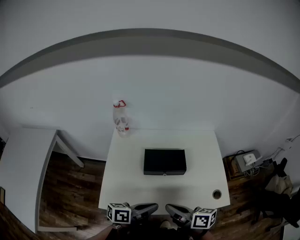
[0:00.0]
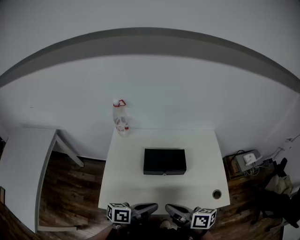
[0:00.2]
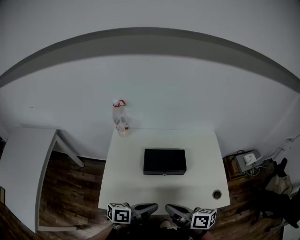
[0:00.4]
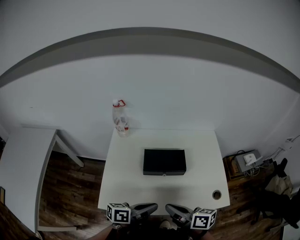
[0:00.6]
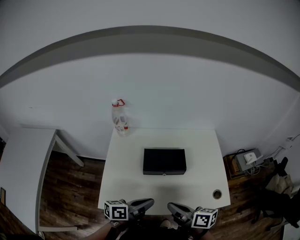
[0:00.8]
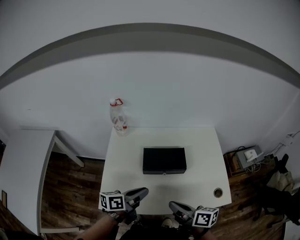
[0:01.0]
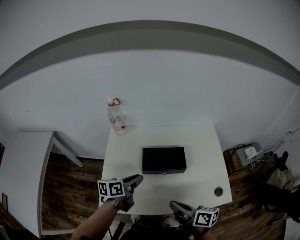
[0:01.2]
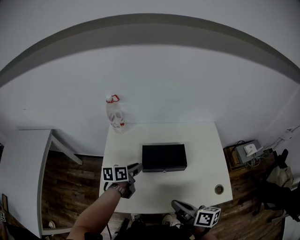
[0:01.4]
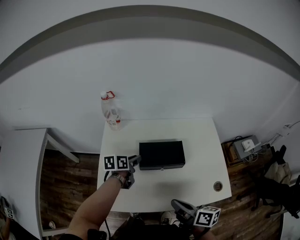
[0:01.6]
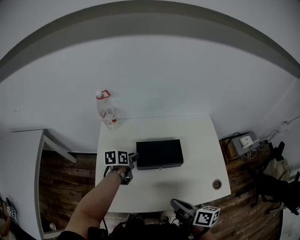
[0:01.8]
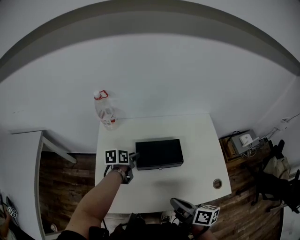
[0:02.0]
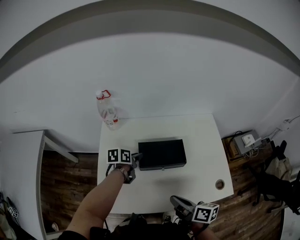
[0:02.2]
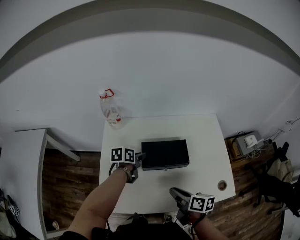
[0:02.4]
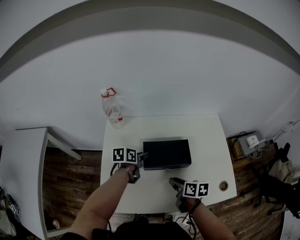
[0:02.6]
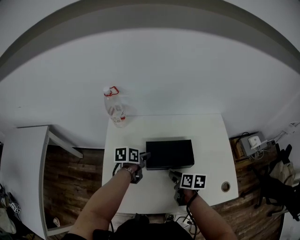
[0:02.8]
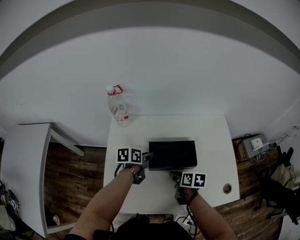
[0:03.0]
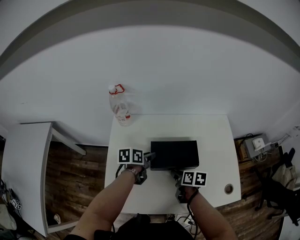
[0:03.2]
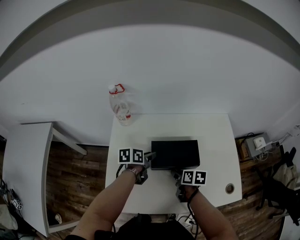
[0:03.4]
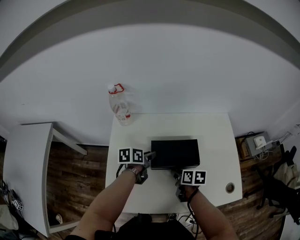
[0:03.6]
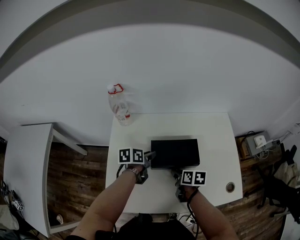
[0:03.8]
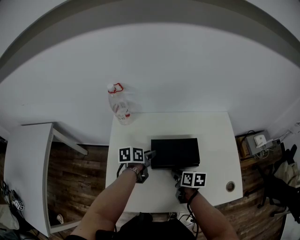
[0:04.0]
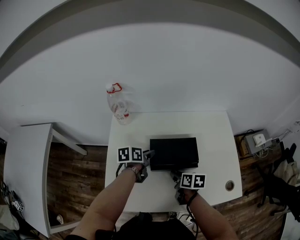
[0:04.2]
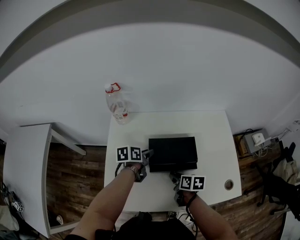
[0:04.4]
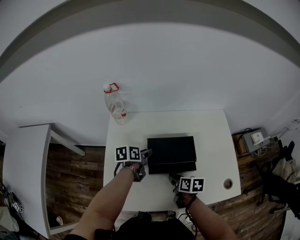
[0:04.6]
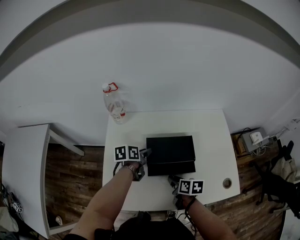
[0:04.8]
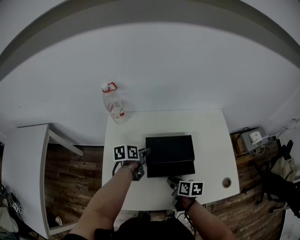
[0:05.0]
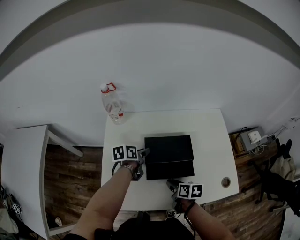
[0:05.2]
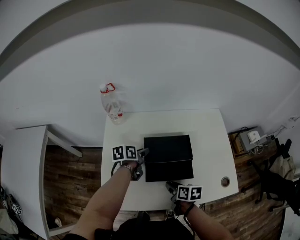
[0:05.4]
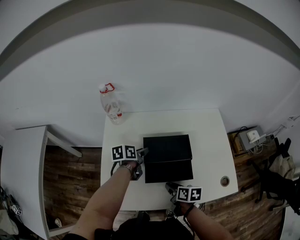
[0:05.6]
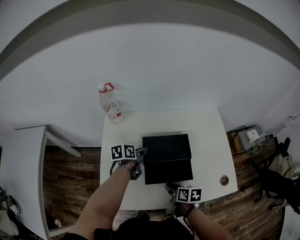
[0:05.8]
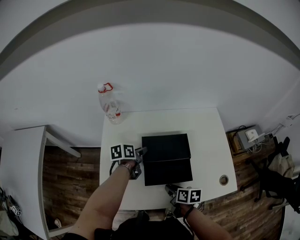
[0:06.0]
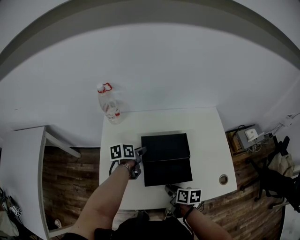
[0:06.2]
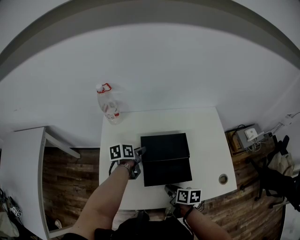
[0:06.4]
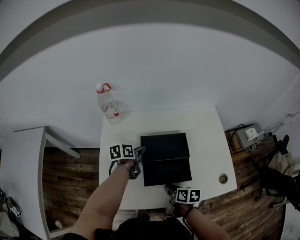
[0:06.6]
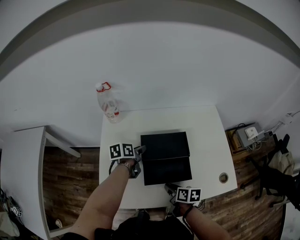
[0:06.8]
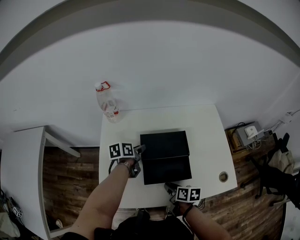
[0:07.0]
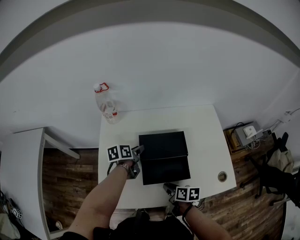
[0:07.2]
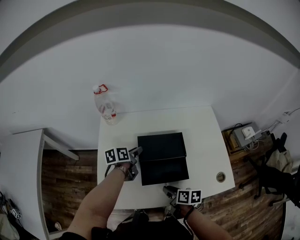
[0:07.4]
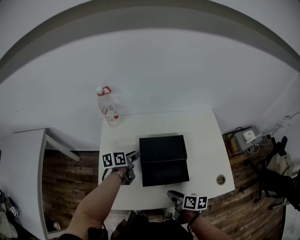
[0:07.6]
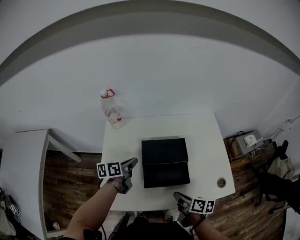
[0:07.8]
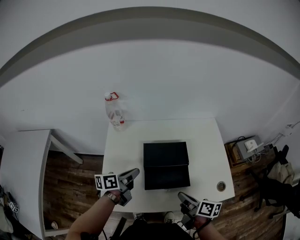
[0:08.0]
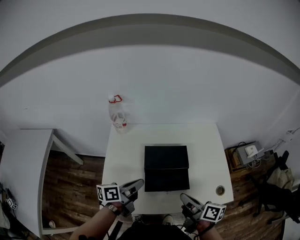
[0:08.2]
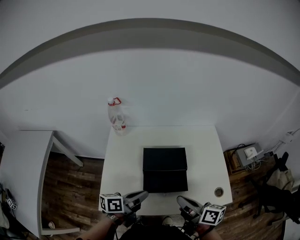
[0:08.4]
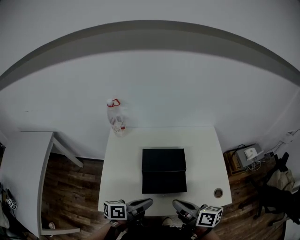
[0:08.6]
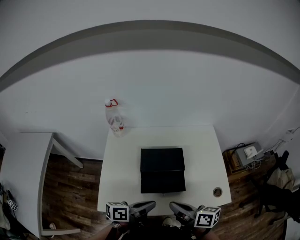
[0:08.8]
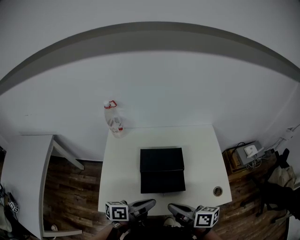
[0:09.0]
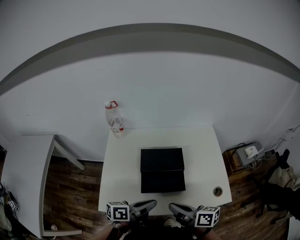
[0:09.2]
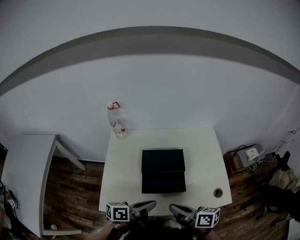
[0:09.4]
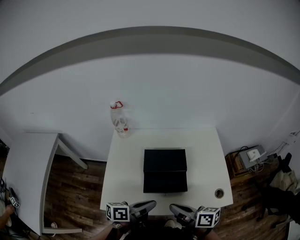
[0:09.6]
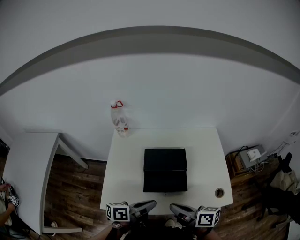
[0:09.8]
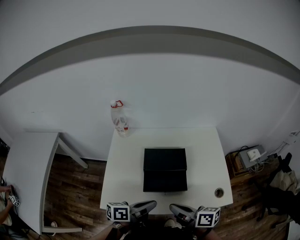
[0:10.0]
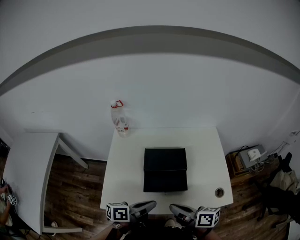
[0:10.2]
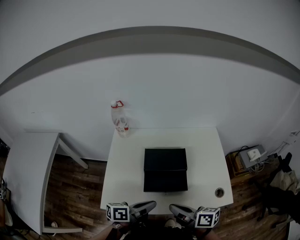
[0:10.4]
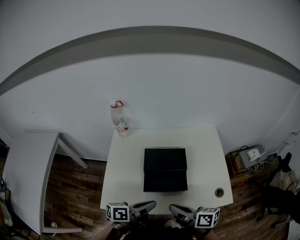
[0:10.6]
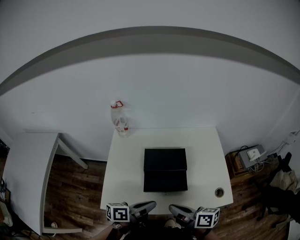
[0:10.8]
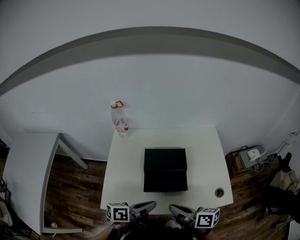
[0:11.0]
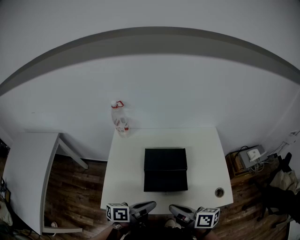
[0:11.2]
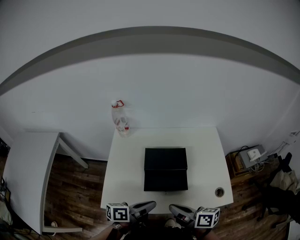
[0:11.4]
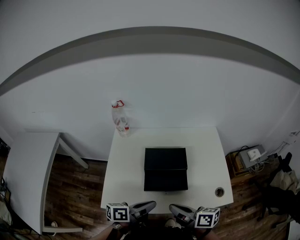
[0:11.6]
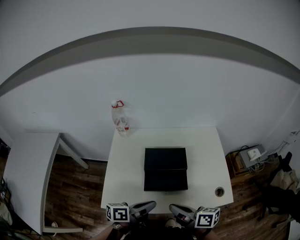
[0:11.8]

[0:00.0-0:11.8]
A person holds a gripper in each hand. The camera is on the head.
0:00.0 to 0:01.4: The left gripper goes approximately 20 cm forward and to the left, swivels approximately 30 degrees, and opens up.
0:01.4 to 0:03.0: The right gripper goes some 20 cm forward and downward, tilts its fingers about 30 degrees downward, and opens up. Meanwhile the left gripper heads forward and downward, covering roughly 10 cm.
0:03.0 to 0:04.4: The grippers stay close to where they were, moving slightly.
0:04.4 to 0:06.0: The right gripper travels backward by approximately 10 cm.
0:06.0 to 0:07.4: The grippers stay close to where they were, moving slightly.
0:07.4 to 0:08.8: The left gripper shifts about 25 cm backward and upward, swivels about 30 degrees, and closes its fingers; the right gripper heads upward, covering about 15 cm, changes its angle by about 30 degrees, and closes its fingers.
0:08.8 to 0:10.4: There are only small adjustments of the grippers.
0:10.4 to 0:11.8: The two grippers keep their place.

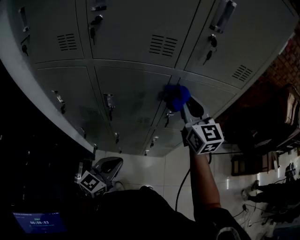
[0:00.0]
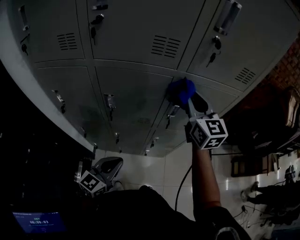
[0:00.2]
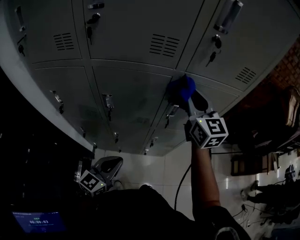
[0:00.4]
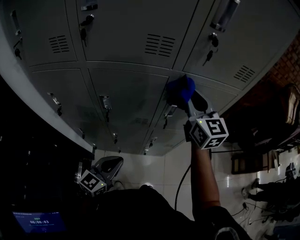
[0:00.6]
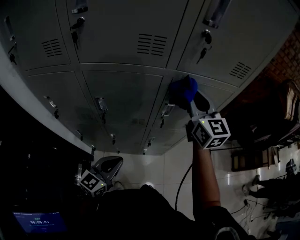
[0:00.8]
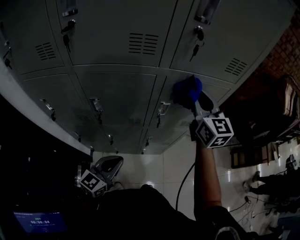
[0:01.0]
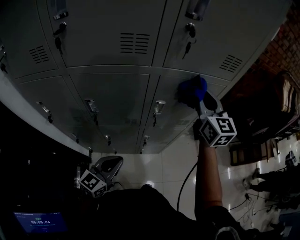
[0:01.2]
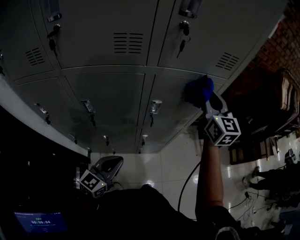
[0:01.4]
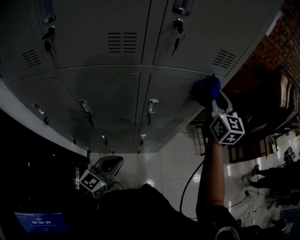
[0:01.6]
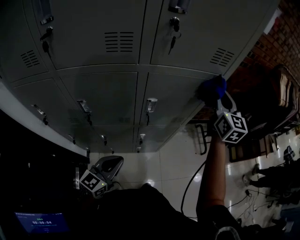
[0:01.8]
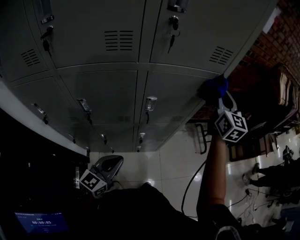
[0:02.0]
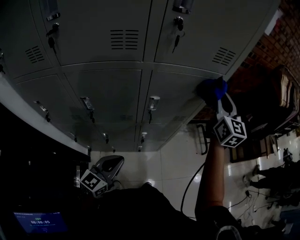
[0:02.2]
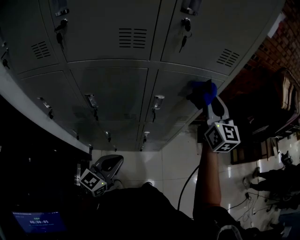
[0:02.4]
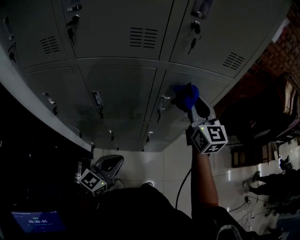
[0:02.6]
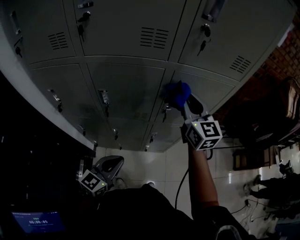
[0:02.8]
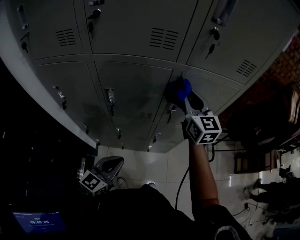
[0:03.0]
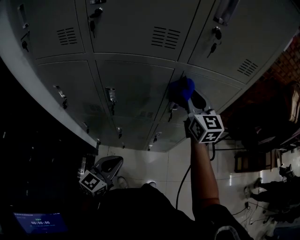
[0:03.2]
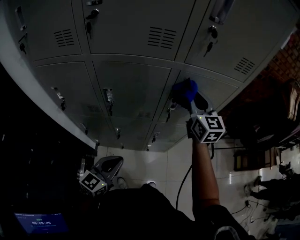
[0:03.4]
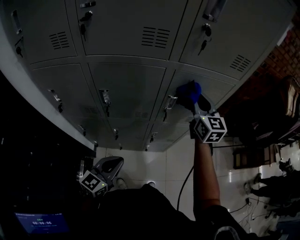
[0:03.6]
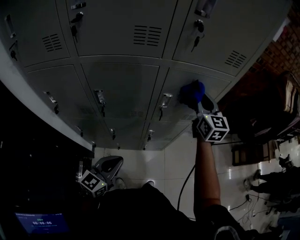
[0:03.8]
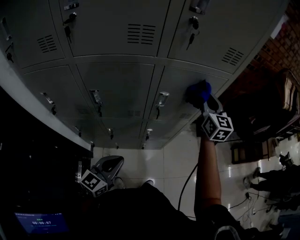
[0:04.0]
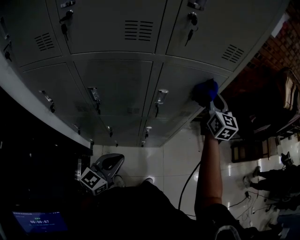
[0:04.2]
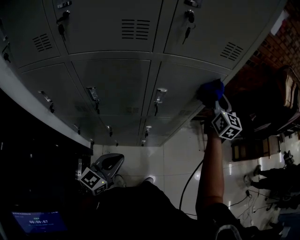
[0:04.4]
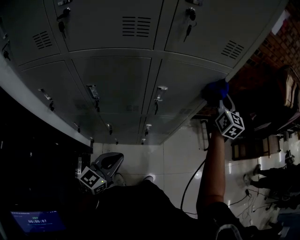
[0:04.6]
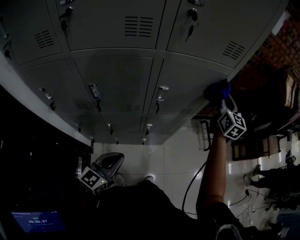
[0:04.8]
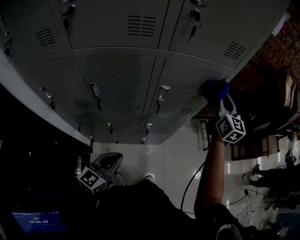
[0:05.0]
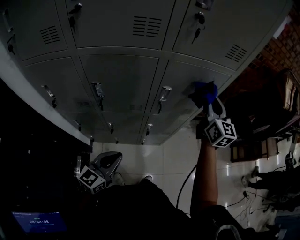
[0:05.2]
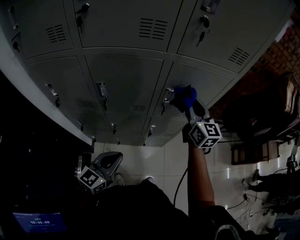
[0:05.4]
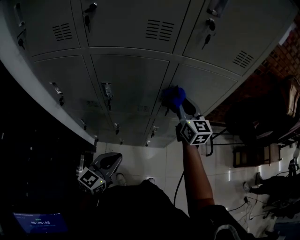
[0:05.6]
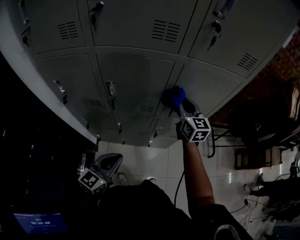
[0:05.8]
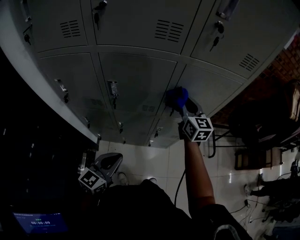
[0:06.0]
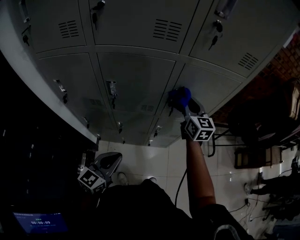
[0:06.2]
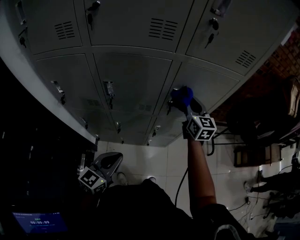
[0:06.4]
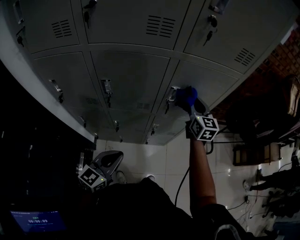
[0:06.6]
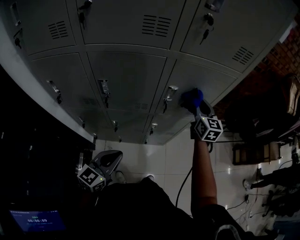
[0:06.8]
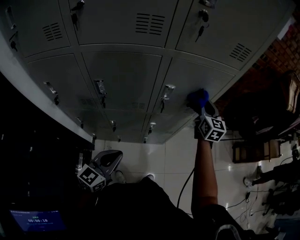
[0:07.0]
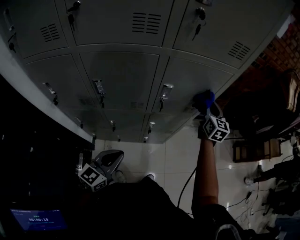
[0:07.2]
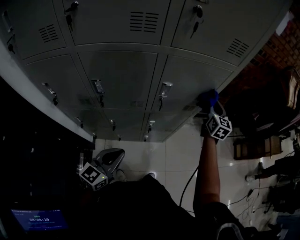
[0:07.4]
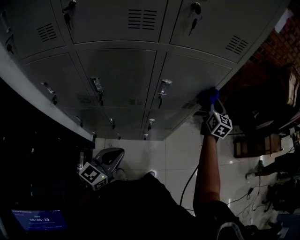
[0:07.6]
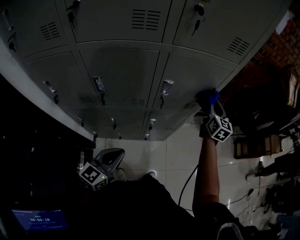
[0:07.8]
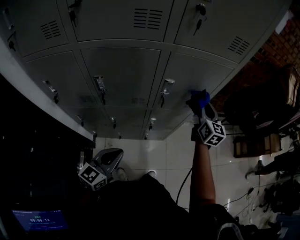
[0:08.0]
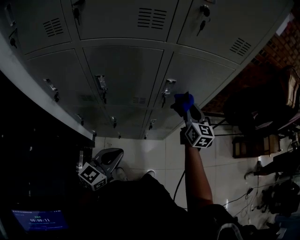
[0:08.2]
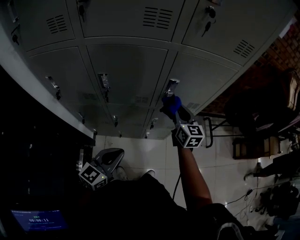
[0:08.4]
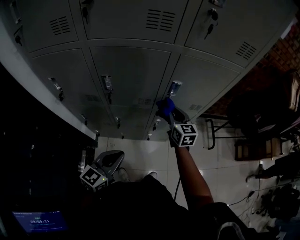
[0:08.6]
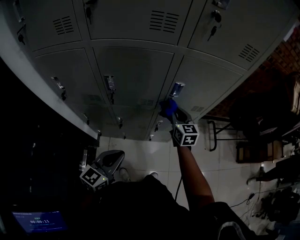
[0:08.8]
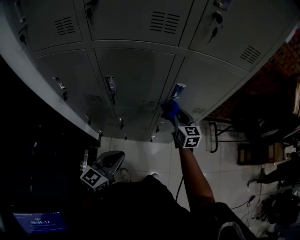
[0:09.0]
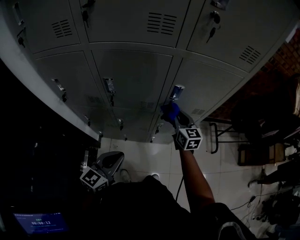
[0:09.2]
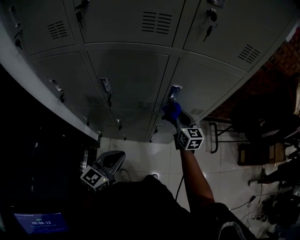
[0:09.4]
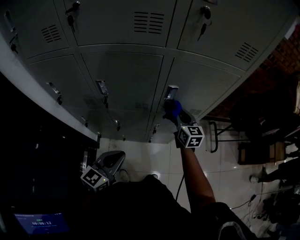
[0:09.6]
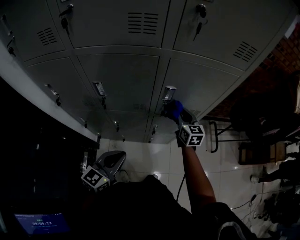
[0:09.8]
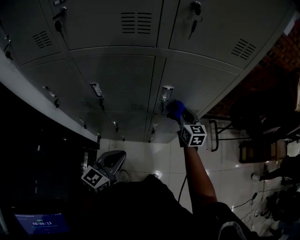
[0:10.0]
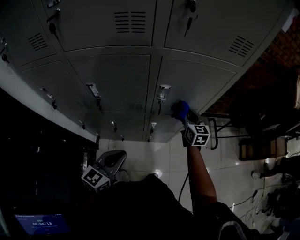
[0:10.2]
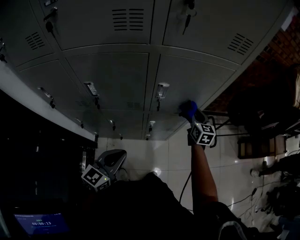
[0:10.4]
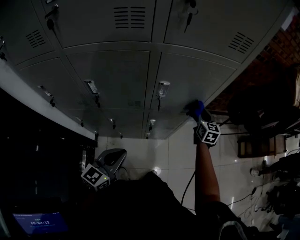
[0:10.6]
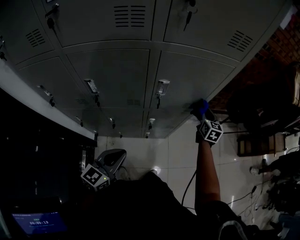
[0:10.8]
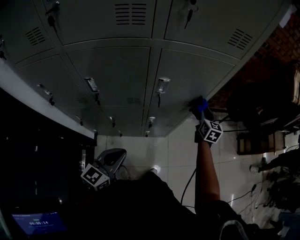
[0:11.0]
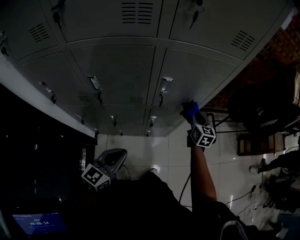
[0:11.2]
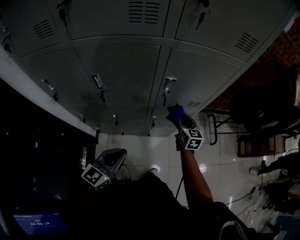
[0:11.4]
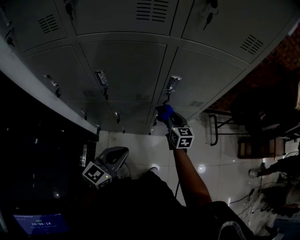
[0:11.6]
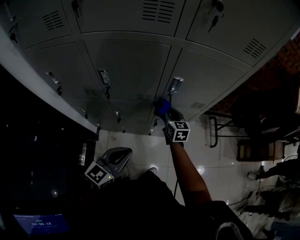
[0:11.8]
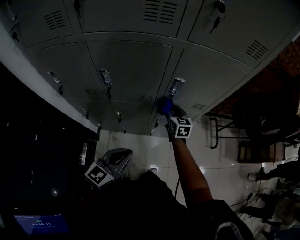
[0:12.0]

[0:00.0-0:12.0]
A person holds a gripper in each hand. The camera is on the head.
0:00.0 to 0:01.6: The right gripper is displaced to the right by about 20 cm, while the left gripper moves to the right and forward, about 10 cm.
0:01.6 to 0:03.0: The right gripper shifts roughly 20 cm to the left. Meanwhile the left gripper heads backward, covering some 5 cm.
0:03.0 to 0:04.4: The right gripper is displaced to the right by about 20 cm, and swivels some 20 degrees.
0:04.4 to 0:06.0: The left gripper is displaced to the left by some 5 cm. The right gripper shifts approximately 20 cm to the left.
0:06.0 to 0:07.6: The right gripper heads to the right, covering about 25 cm, and changes its angle by some 30 degrees, while the left gripper shifts by roughly 5 cm.
0:07.6 to 0:09.0: The right gripper moves to the left, backward and downward, some 25 cm, and rotates approximately 30 degrees.
0:09.0 to 0:10.4: The left gripper goes roughly 10 cm to the right and forward, while the right gripper travels to the right and forward by about 15 cm.
0:10.4 to 0:12.0: The right gripper is displaced to the left by approximately 15 cm.
